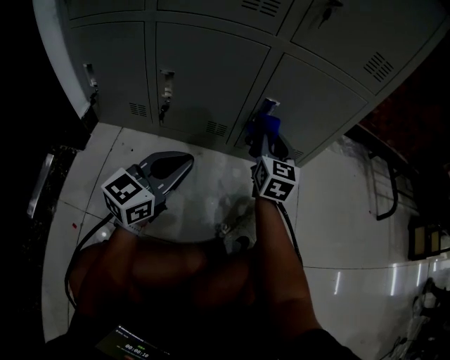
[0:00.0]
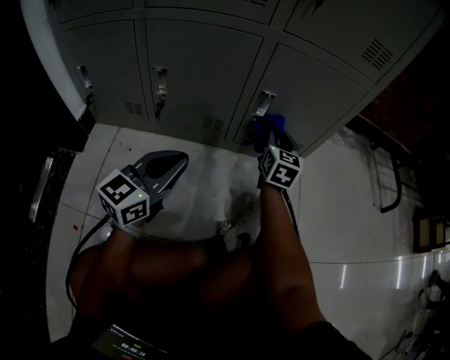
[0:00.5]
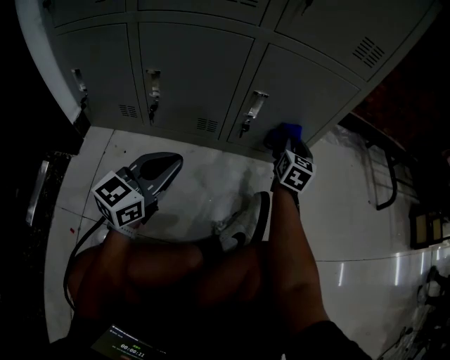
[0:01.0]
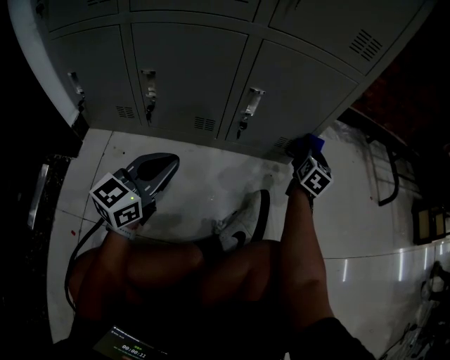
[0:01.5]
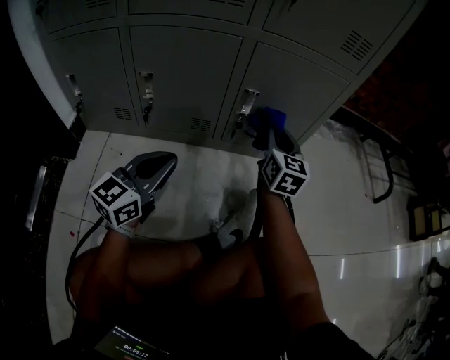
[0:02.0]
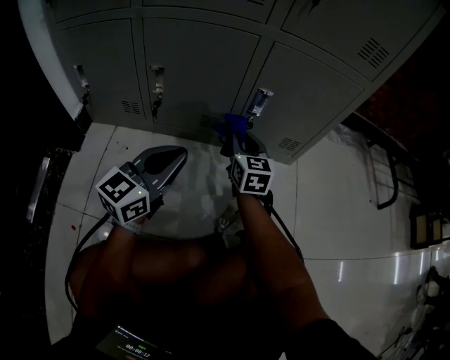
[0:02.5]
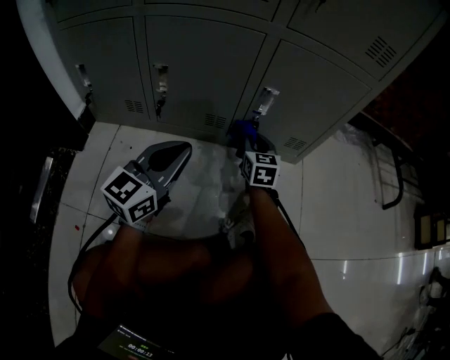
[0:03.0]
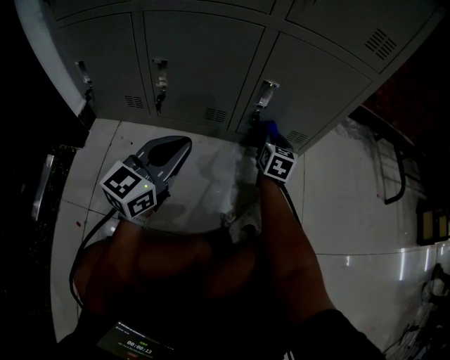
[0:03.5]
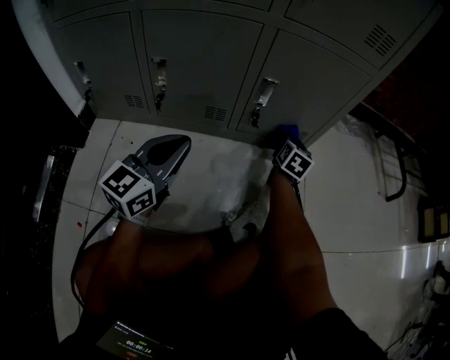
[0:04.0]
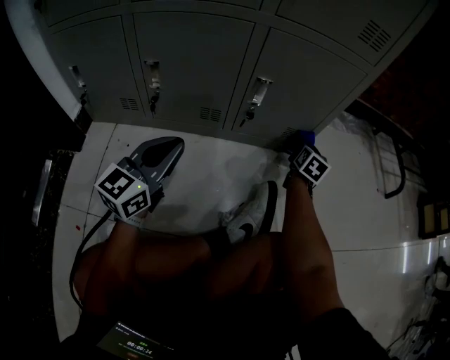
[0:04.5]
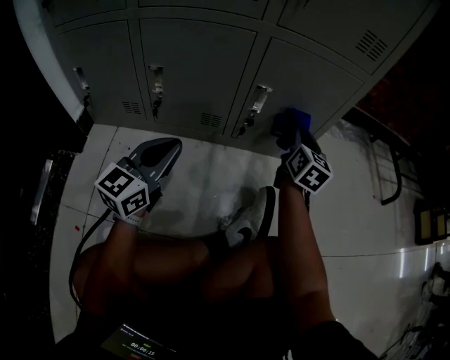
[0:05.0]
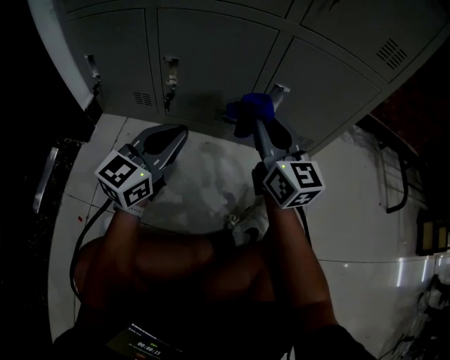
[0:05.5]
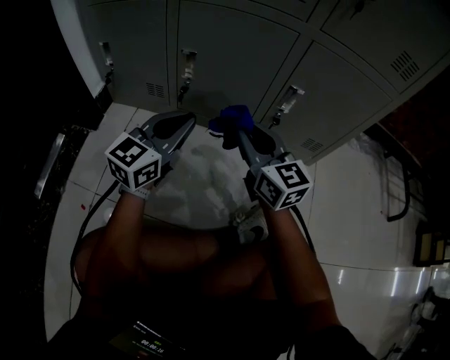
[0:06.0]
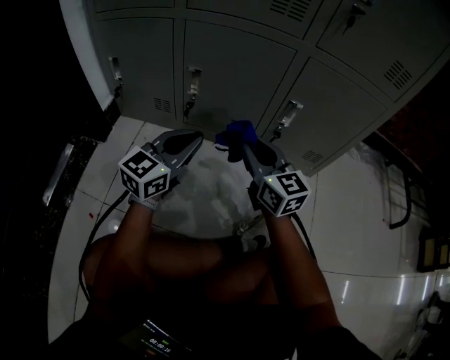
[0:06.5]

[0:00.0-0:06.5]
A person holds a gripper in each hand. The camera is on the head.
0:00.0 to 0:02.0: The right gripper reaches roughly 20 cm to the right, then returns.
0:02.0 to 0:04.5: The right gripper moves downward, to the right and forward, some 20 cm, and rotates roughly 30 degrees.
0:04.5 to 0:06.5: The right gripper ends up about 40 cm from where it was, and rotates approximately 60 degrees.

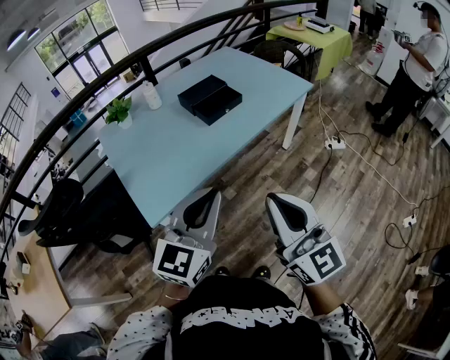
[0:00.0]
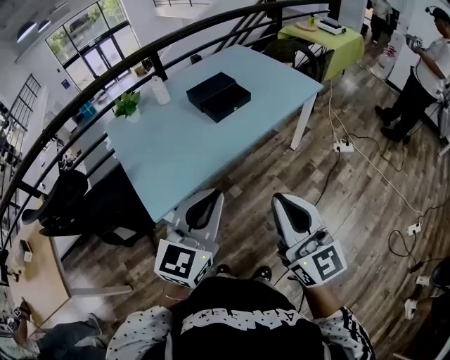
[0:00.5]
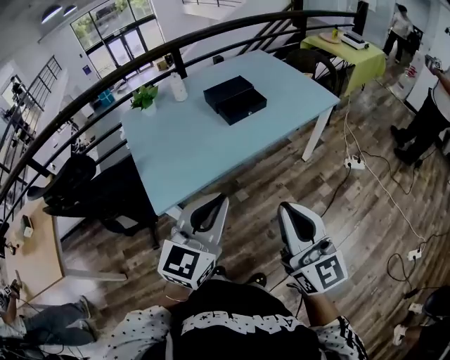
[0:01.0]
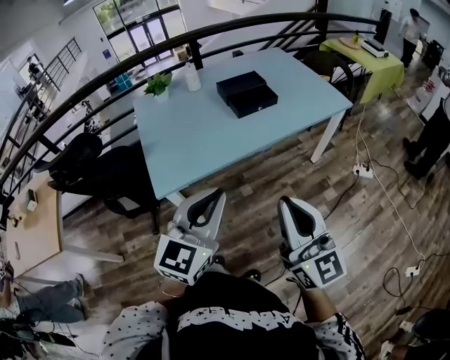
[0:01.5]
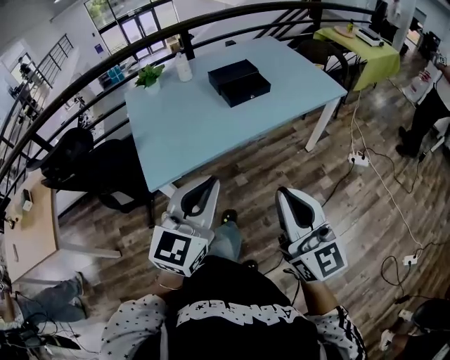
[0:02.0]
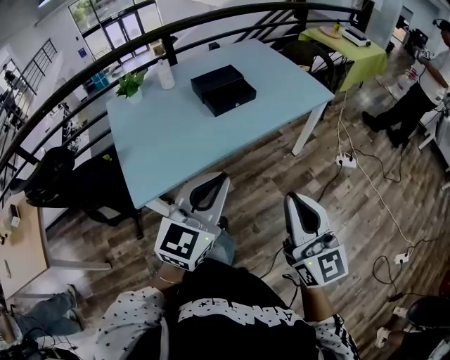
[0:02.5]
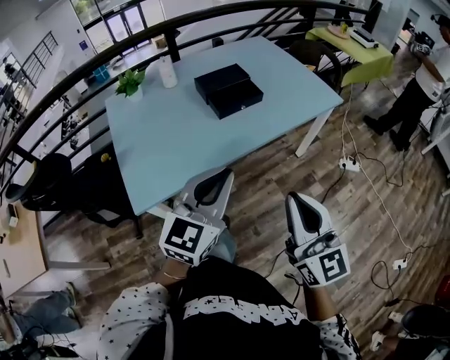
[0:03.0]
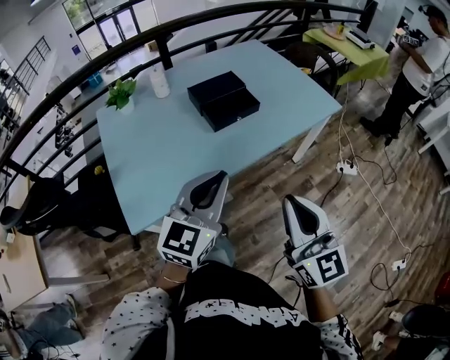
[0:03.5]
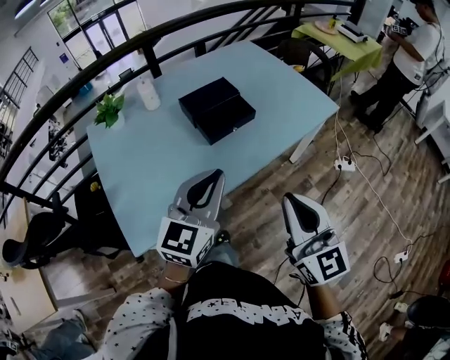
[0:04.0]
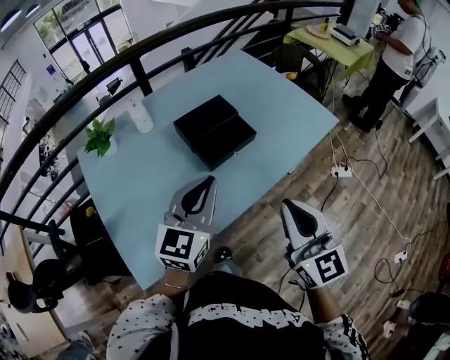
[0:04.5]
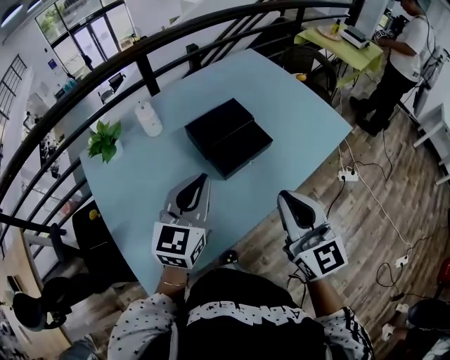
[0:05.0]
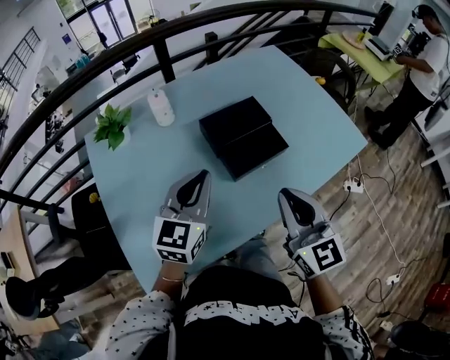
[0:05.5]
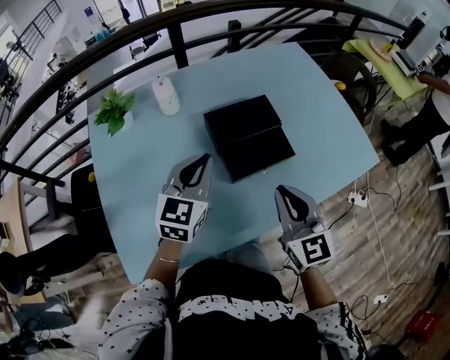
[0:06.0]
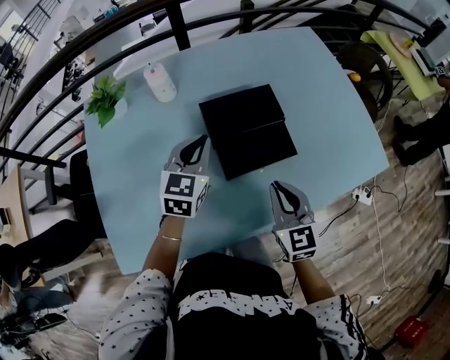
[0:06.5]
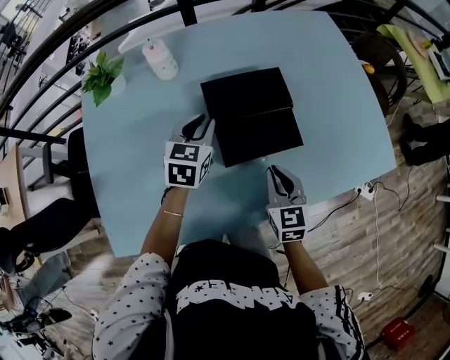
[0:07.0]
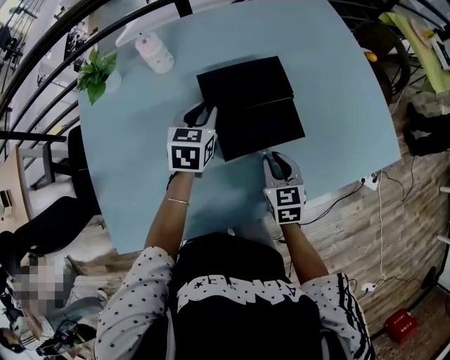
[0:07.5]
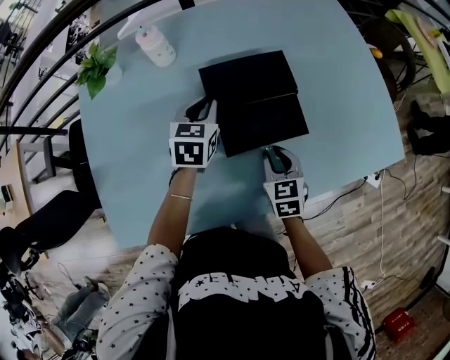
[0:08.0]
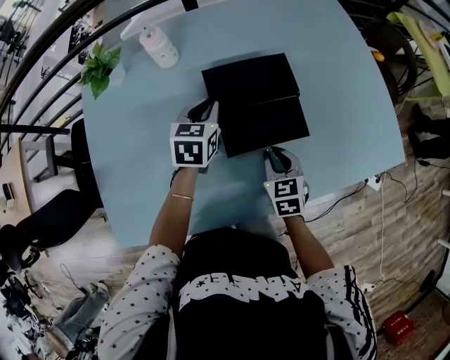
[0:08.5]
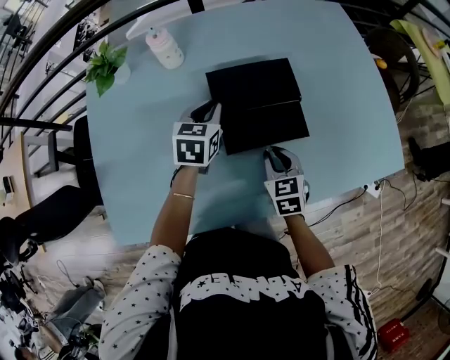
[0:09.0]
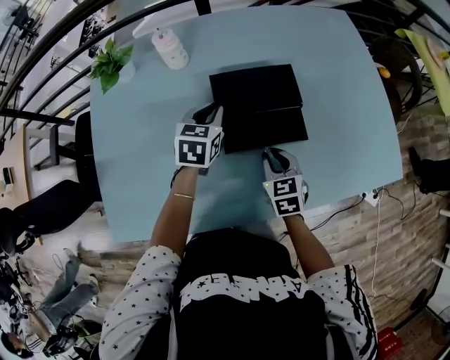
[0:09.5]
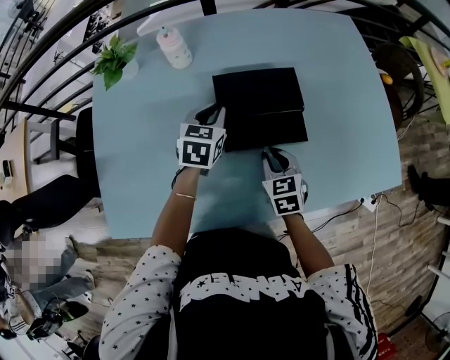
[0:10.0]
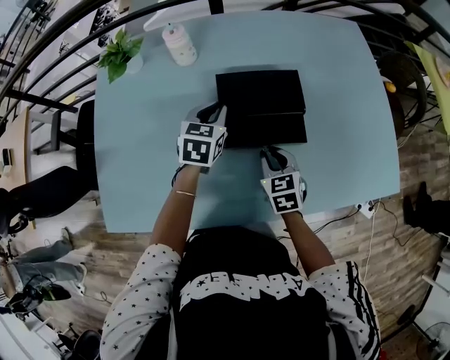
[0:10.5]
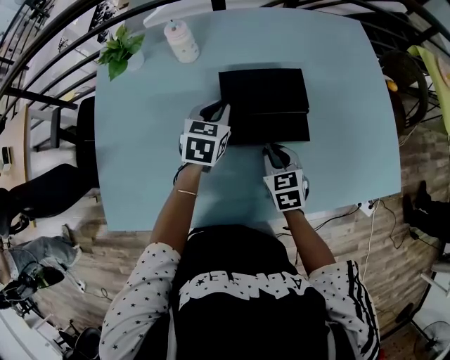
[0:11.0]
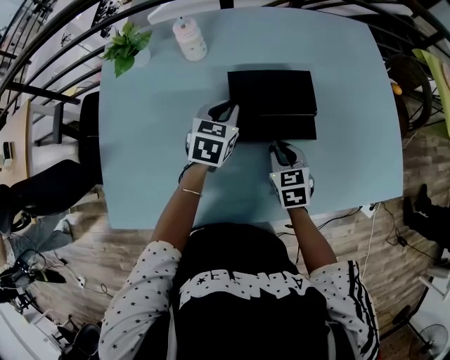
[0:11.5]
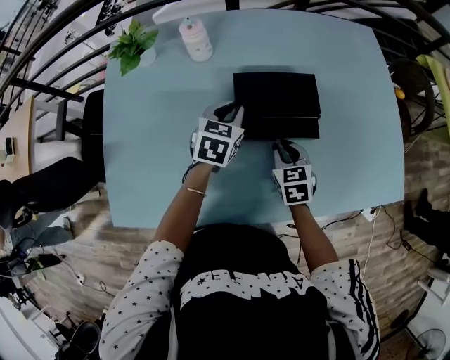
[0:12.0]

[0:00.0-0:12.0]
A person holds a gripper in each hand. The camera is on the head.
0:00.0 to 0:02.0: The right gripper shifts approximately 5 cm to the right.
0:02.0 to 0:04.0: Both grippers move forward, about 25 cm.
0:04.0 to 0:06.0: The right gripper travels forward by some 30 cm; the left gripper heads forward and to the left, covering roughly 30 cm.
0:06.0 to 0:08.0: The two grippers go some 25 cm downward and forward. The right gripper turns by some 30 degrees, while the left gripper swivels approximately 30 degrees.
0:08.0 to 0:10.0: The grippers make only small movements.
0:10.0 to 0:12.0: There are only small adjustments of the grippers.

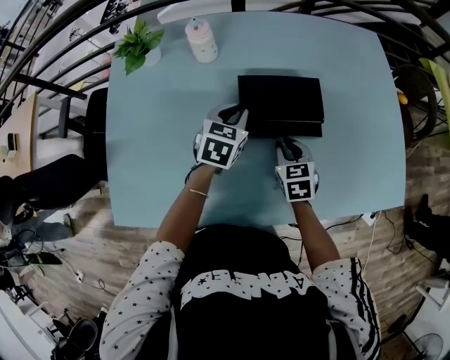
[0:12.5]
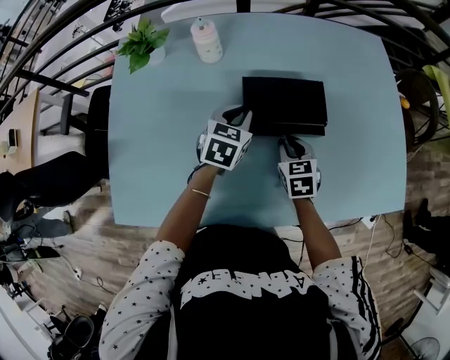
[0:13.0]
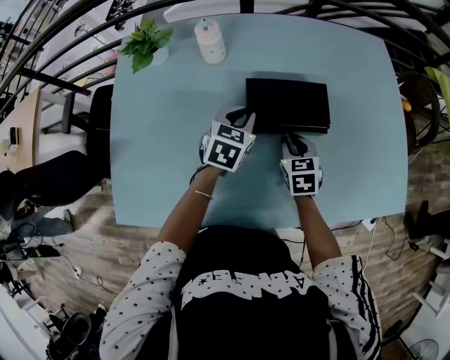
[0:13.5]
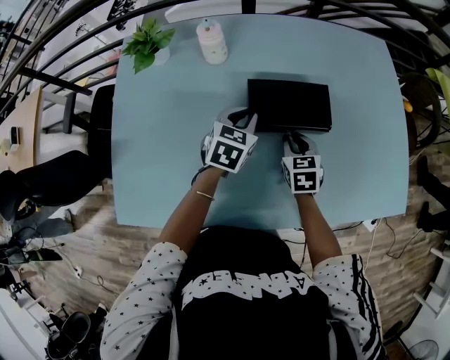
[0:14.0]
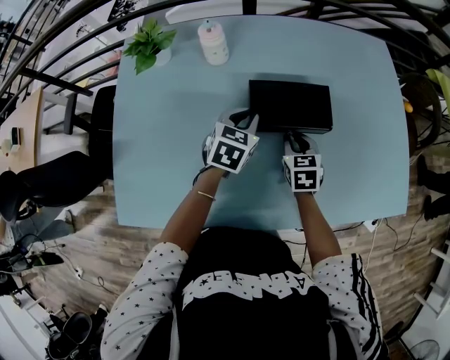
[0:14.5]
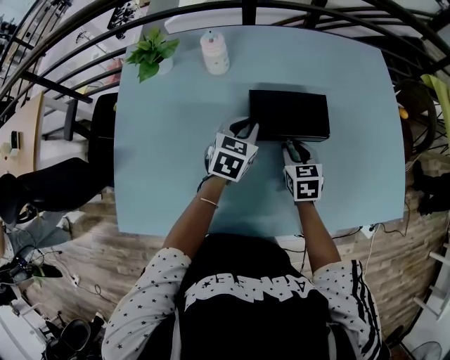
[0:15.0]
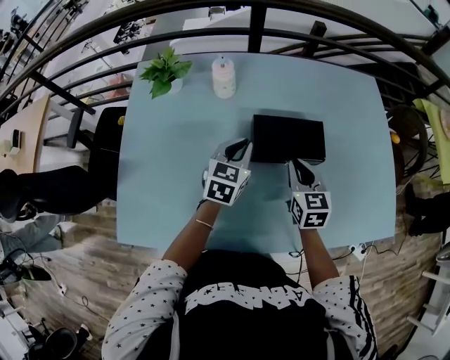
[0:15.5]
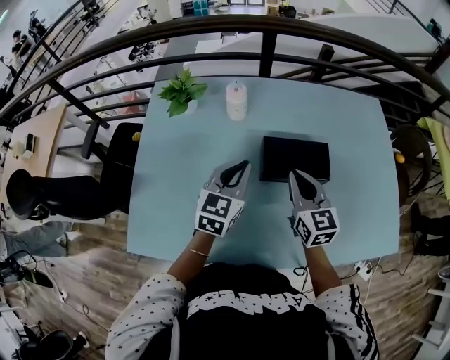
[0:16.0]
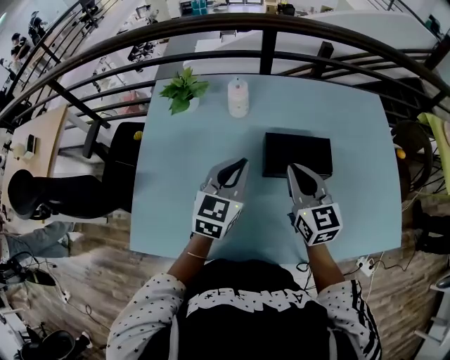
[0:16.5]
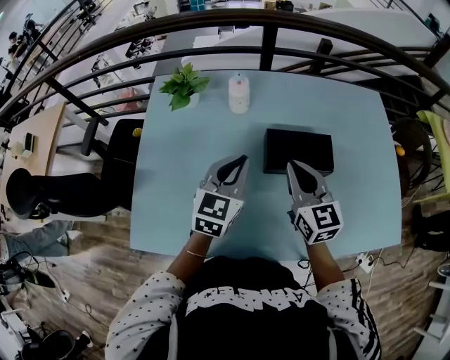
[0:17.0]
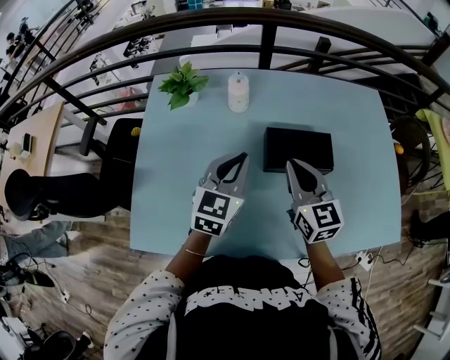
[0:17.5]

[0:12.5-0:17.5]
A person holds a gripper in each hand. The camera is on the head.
0:12.5 to 0:15.0: The grippers stay close to where they were, moving slightly.
0:15.0 to 0:17.5: The two grippers go about 20 cm upward and to the left. The left gripper turns by about 20 degrees. The right gripper angles its fingers upward, by about 30 degrees, and closes.

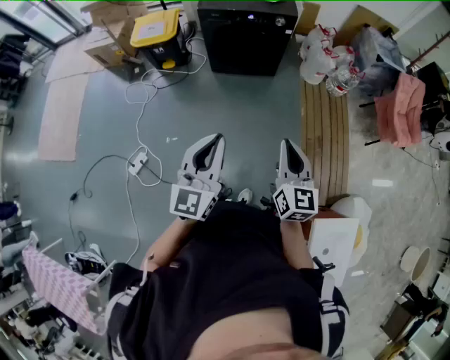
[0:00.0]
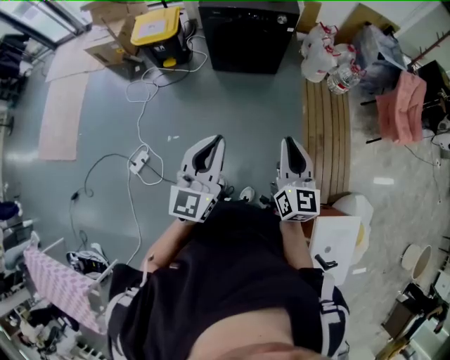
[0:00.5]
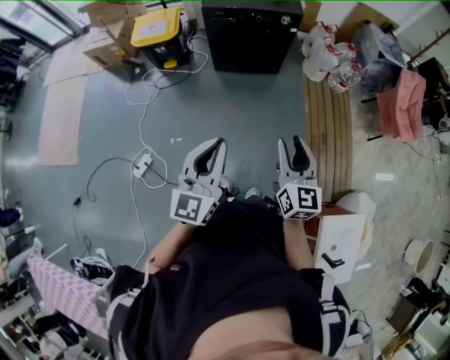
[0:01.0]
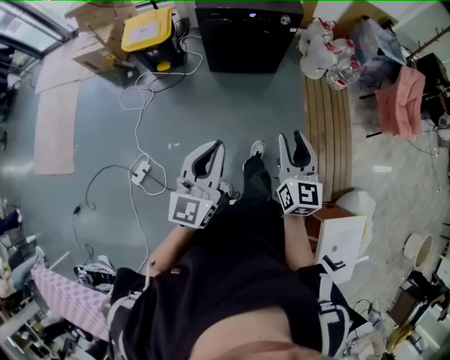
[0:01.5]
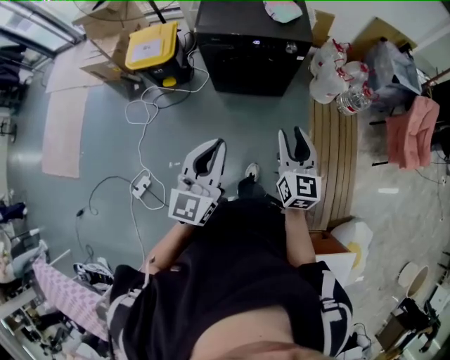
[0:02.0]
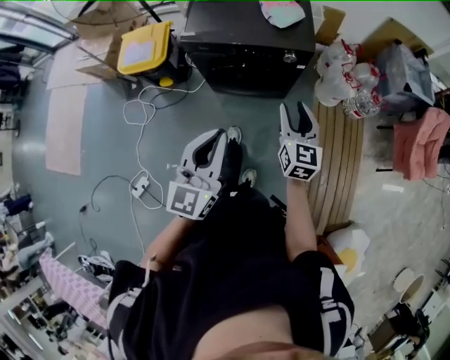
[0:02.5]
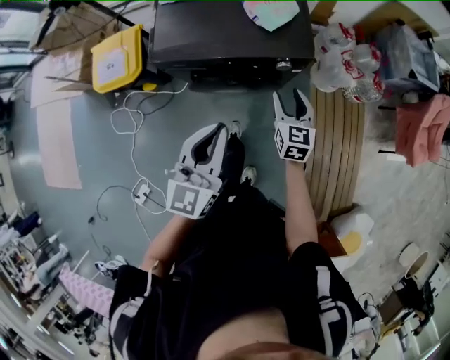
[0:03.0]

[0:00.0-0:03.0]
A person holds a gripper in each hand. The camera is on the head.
0:00.0 to 0:01.5: The right gripper goes roughly 15 cm forward and to the left, and opens up. Meanwhile the left gripper is displaced to the left and forward by roughly 15 cm.
0:01.5 to 0:03.0: The two grippers travel together, forward, about 70 cm.
